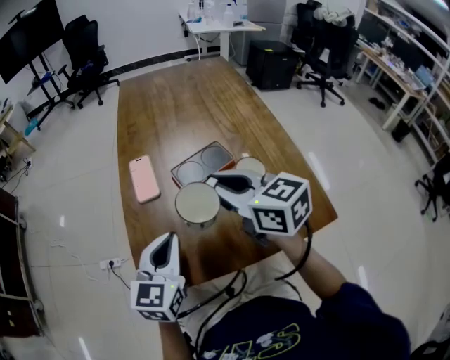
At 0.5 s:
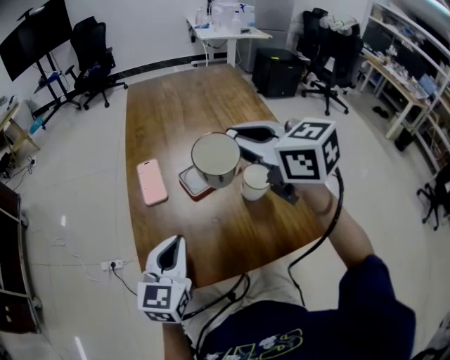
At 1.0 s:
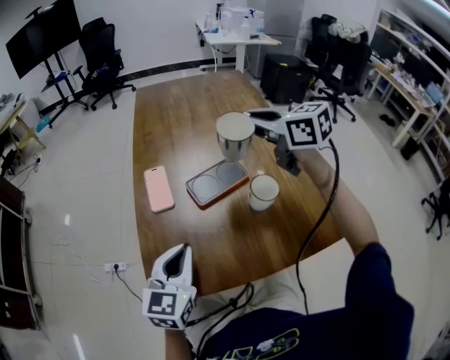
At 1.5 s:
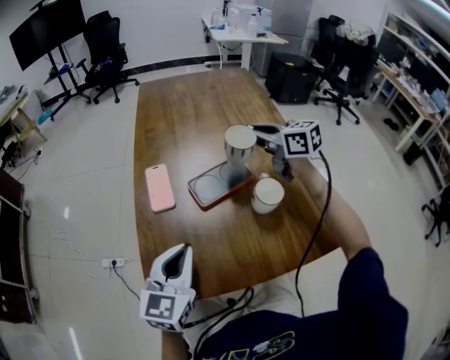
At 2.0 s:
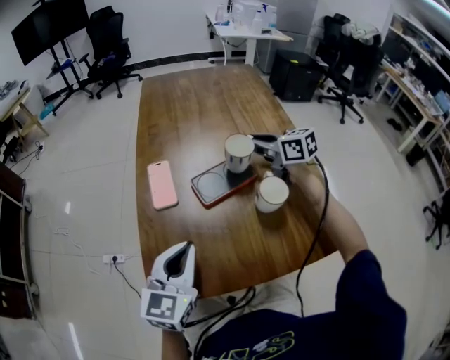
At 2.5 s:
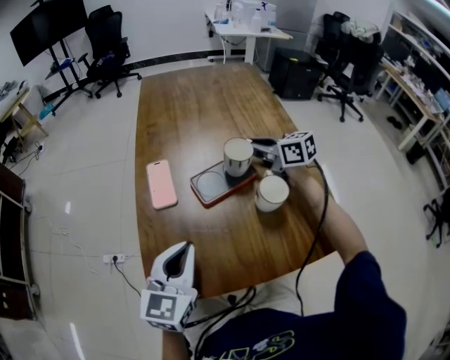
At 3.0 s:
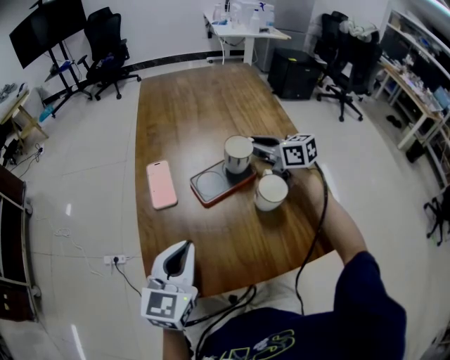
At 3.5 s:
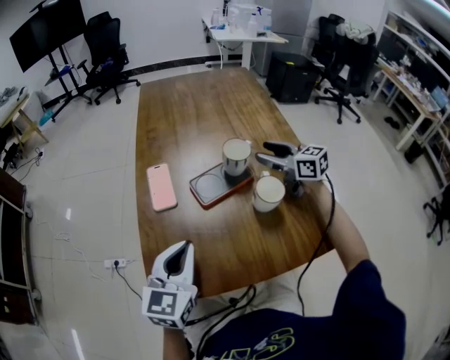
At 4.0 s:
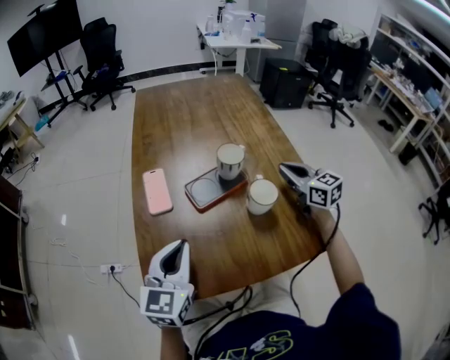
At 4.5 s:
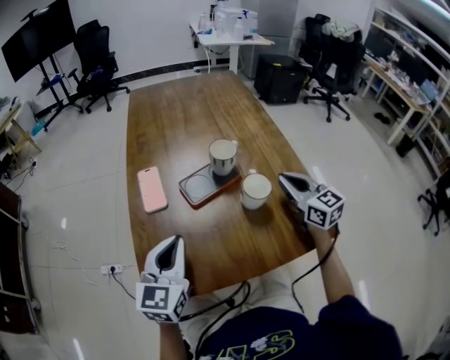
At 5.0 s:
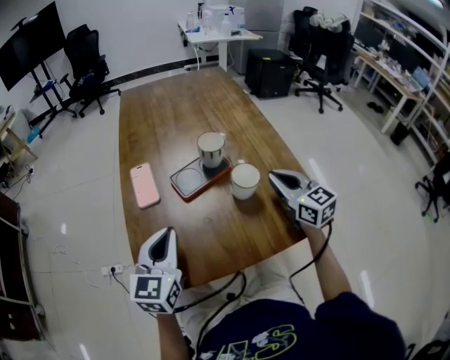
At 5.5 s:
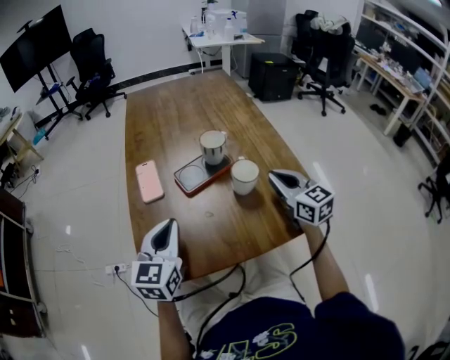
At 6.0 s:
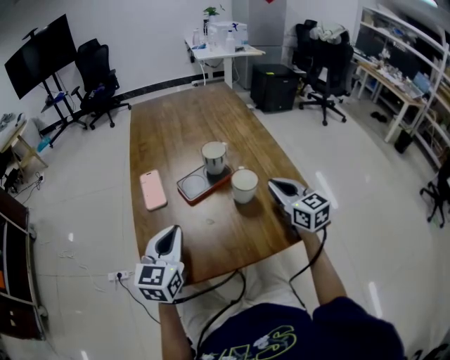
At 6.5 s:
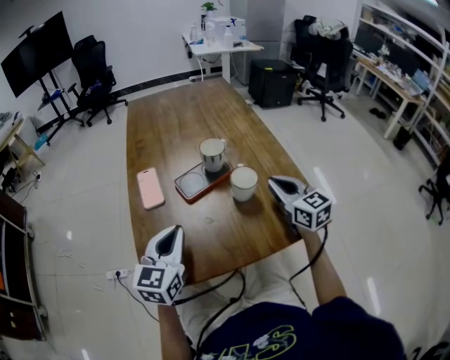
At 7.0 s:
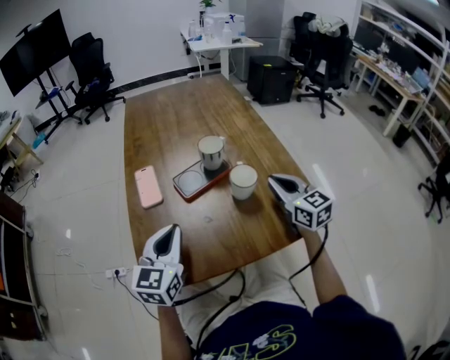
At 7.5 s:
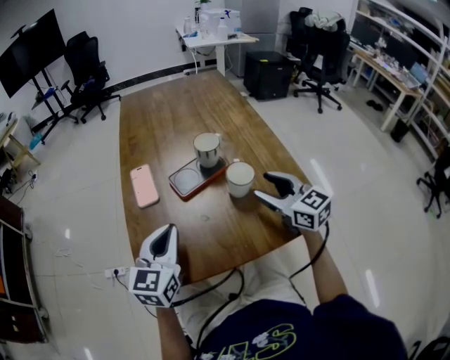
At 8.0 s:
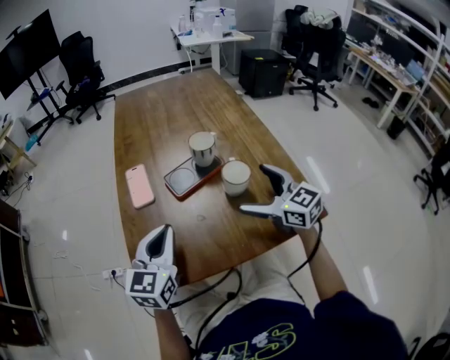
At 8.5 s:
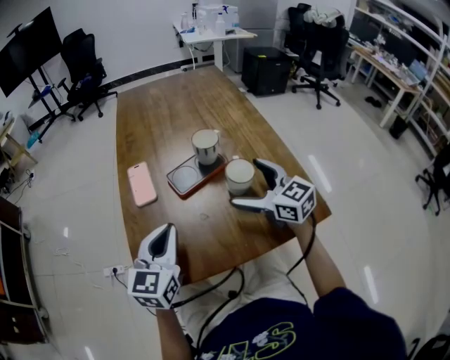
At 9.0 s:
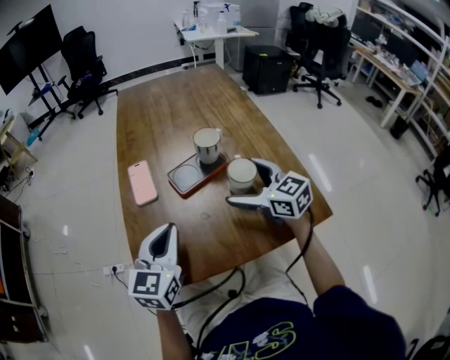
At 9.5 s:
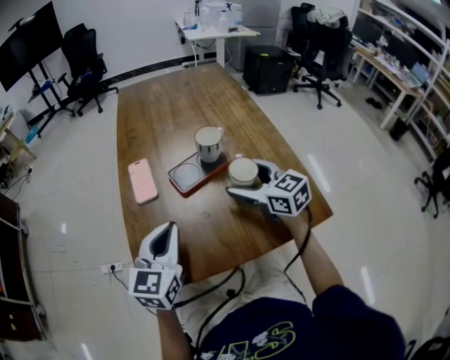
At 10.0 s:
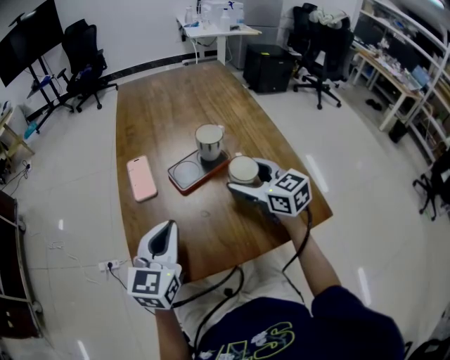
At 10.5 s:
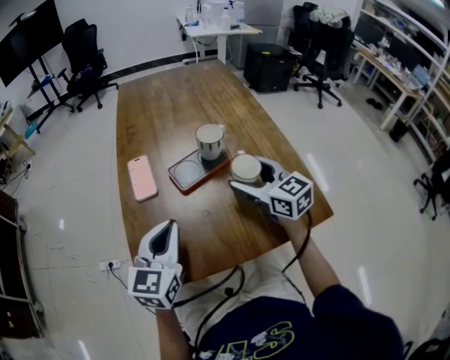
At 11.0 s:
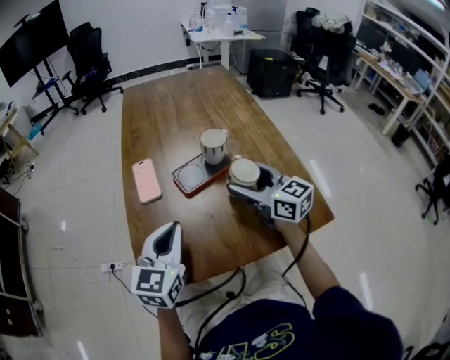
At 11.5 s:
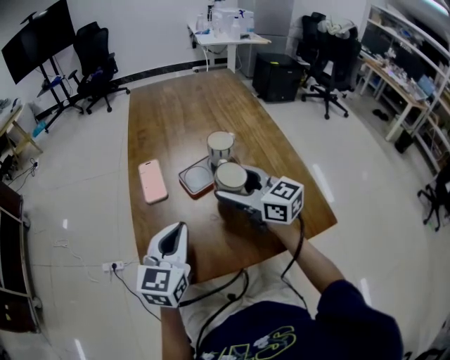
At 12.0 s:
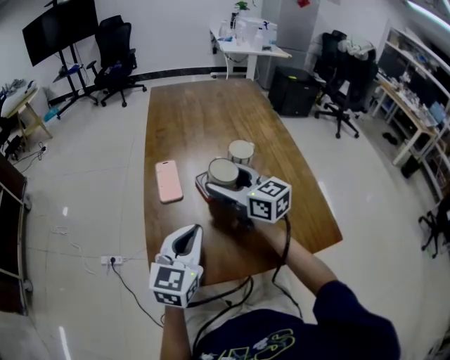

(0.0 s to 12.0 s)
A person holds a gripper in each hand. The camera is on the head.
0.0 s - 2.0 s: The right gripper moves forward and to the right, approximately 20 cm.
2.0 s - 4.0 s: The right gripper heads to the right and backward, covering some 15 cm, rotates roughly 20 degrees, and opens and closes again.
4.0 s - 6.0 s: The right gripper travels backward by approximately 10 cm.
6.0 s - 8.0 s: The right gripper goes some 5 cm to the left, and opens up.
8.0 s - 10.0 s: The right gripper travels forward by some 5 cm.
10.0 s - 12.0 s: The right gripper goes about 10 cm to the left.

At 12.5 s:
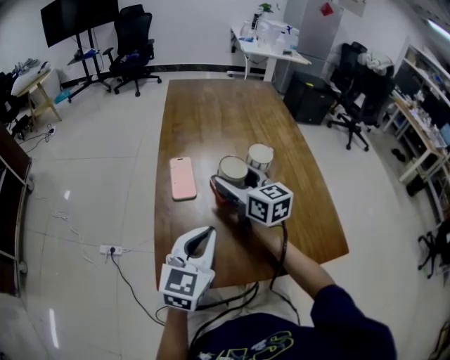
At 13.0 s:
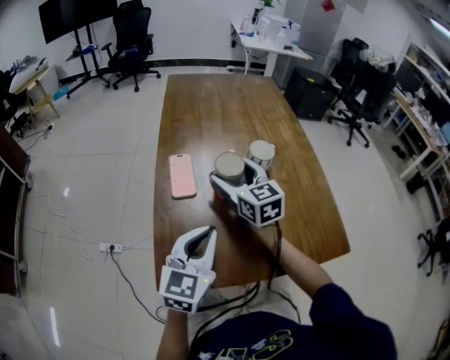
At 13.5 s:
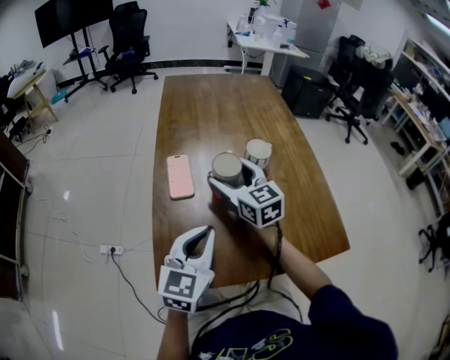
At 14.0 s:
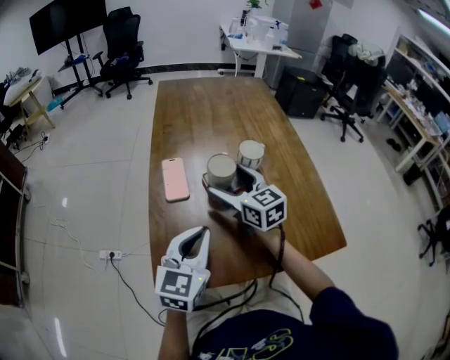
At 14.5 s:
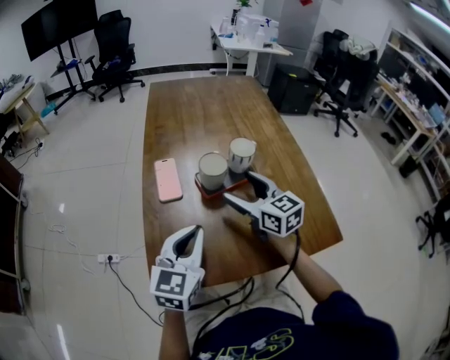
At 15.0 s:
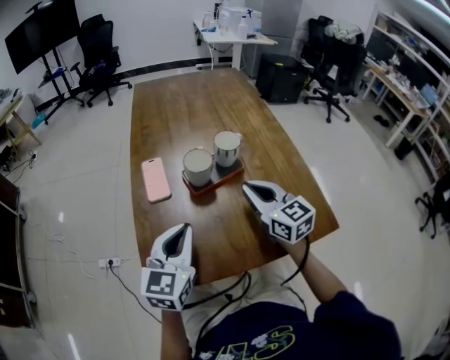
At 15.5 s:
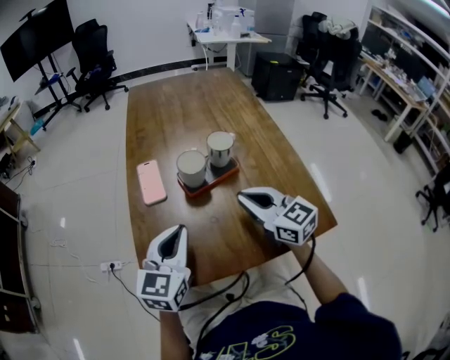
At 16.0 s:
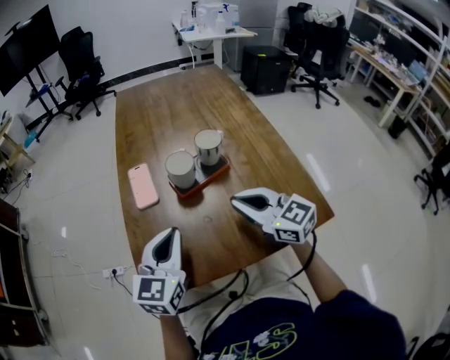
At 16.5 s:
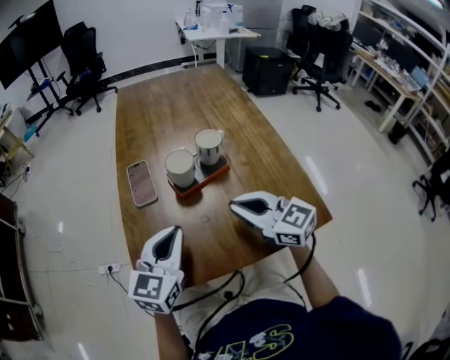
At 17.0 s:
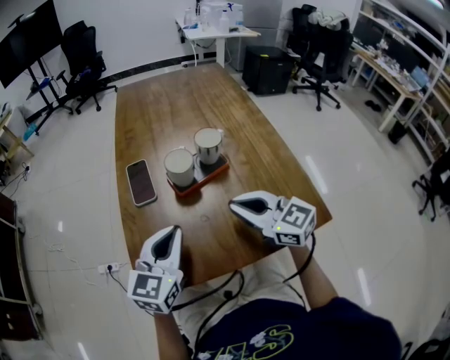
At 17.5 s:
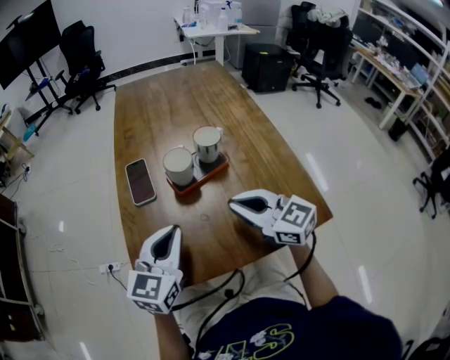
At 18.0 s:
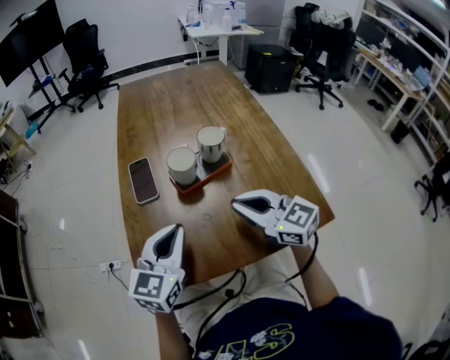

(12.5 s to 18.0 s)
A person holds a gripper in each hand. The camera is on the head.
12.5 s - 14.5 s: The right gripper shifts roughly 5 cm to the right.
14.5 s - 16.0 s: The right gripper is displaced backward by some 10 cm, and closes.
16.0 s - 18.0 s: The two grippers keep their place.

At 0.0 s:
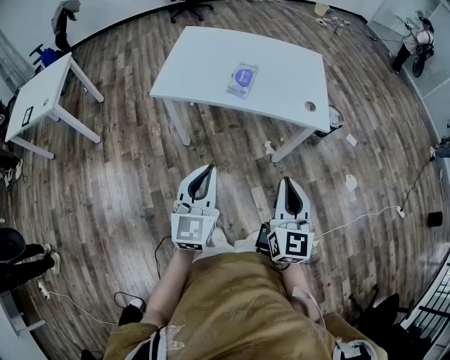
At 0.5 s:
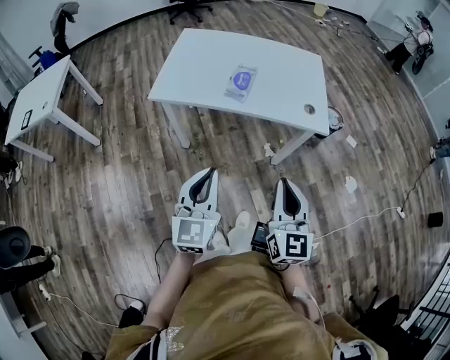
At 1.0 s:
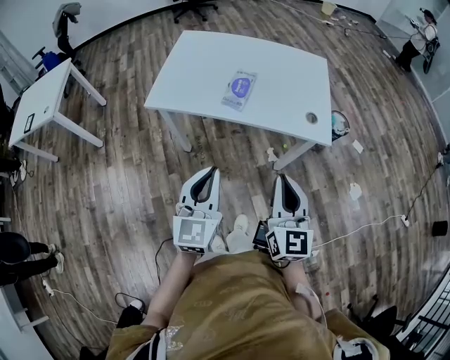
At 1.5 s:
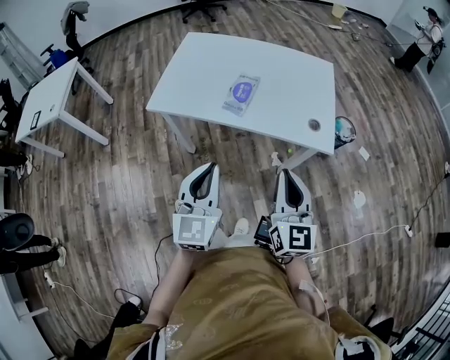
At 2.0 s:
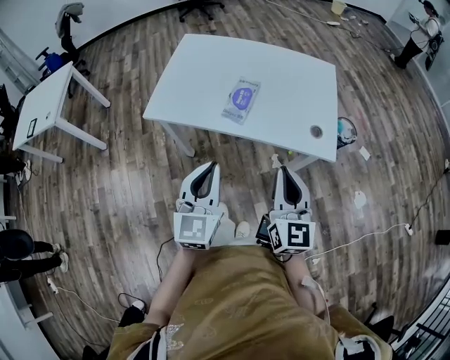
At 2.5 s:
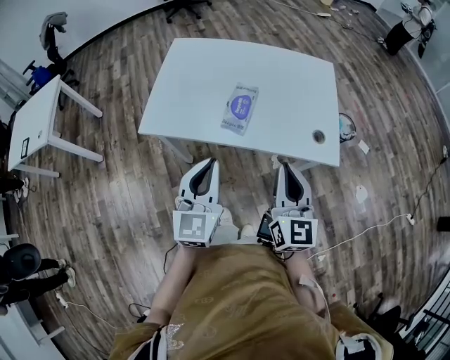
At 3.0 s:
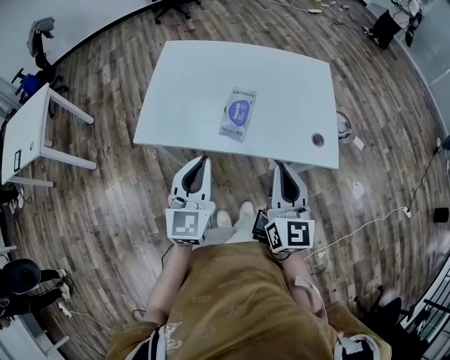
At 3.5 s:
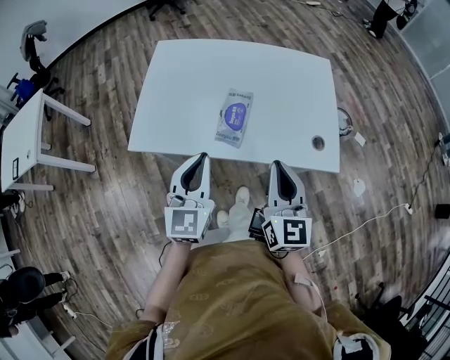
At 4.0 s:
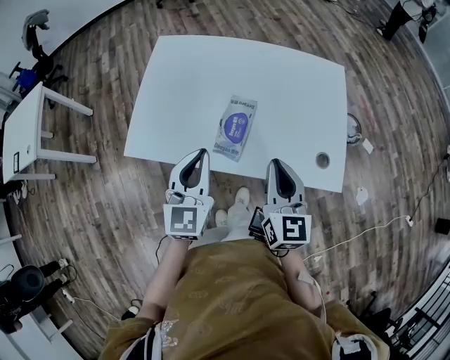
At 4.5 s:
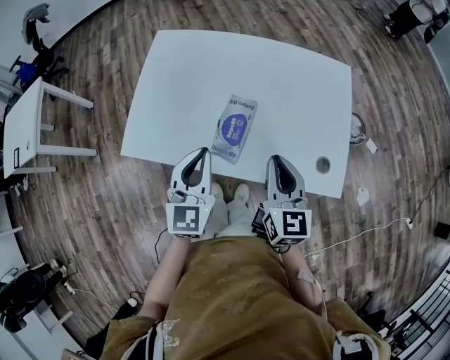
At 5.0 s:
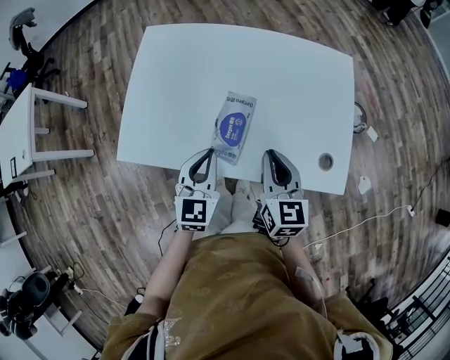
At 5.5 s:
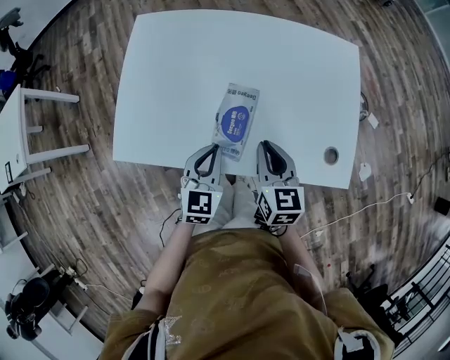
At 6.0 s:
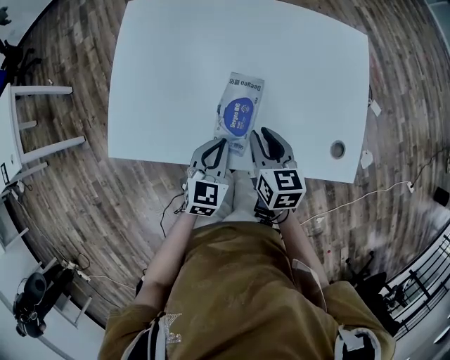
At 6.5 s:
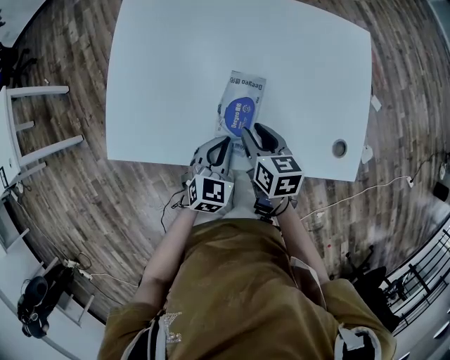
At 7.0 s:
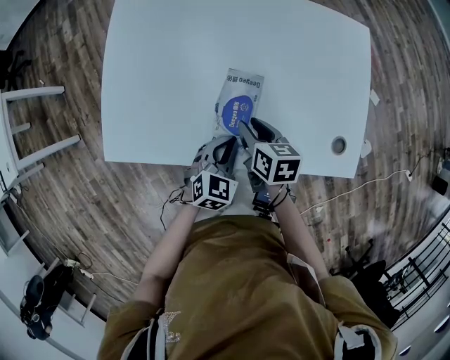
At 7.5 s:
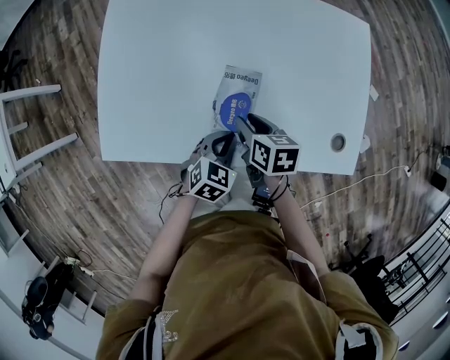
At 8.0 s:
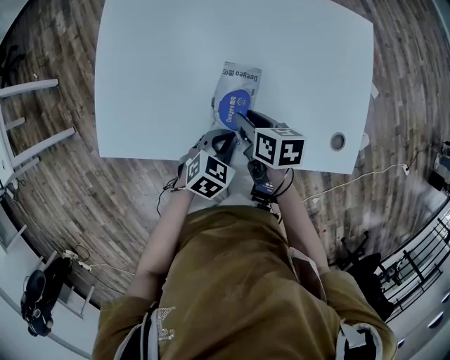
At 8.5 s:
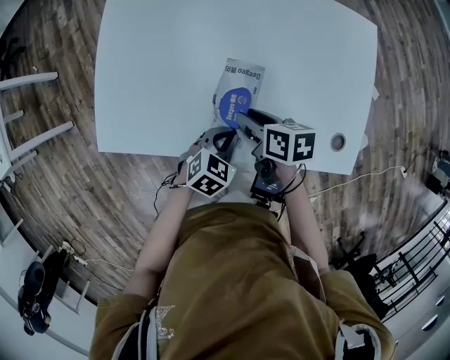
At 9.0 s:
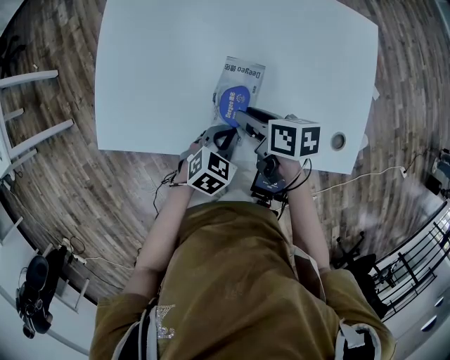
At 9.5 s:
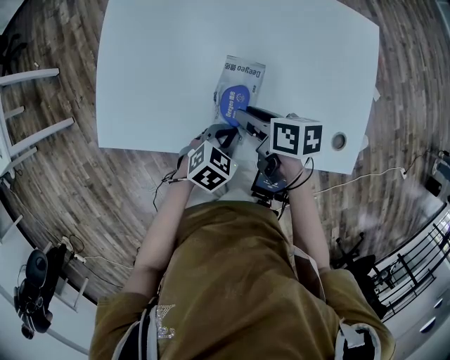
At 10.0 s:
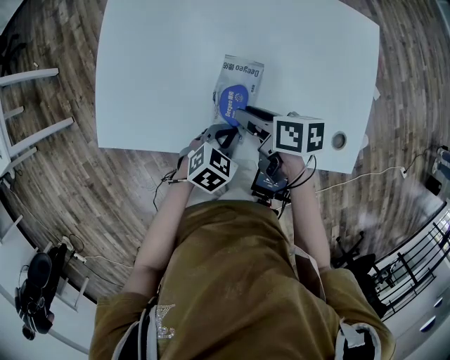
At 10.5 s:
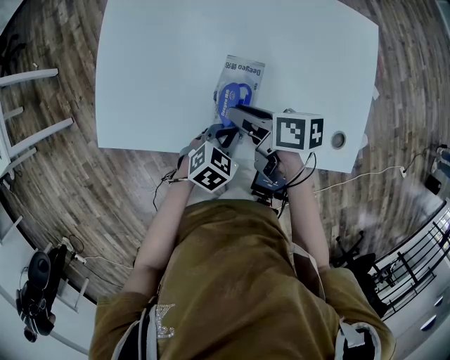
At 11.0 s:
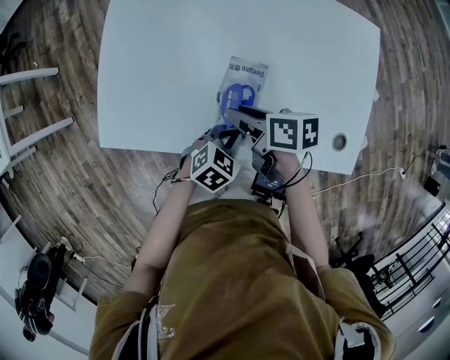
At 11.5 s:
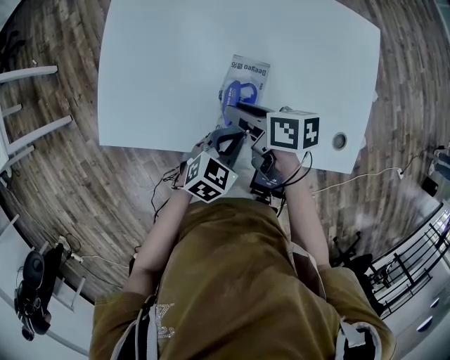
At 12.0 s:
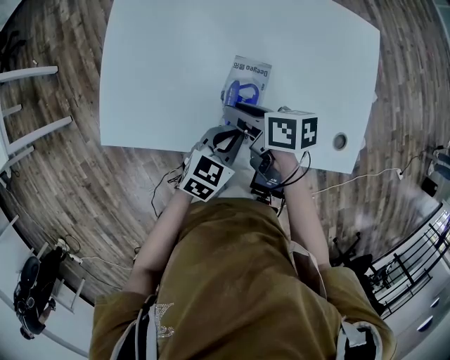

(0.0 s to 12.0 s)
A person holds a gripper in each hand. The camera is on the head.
0.0 s - 2.0 s: Both grippers move forward, some 15 cm.
2.0 s - 4.0 s: The two grippers go roughly 25 cm forward.
4.0 s - 6.0 s: The left gripper is displaced downward by approximately 20 cm, and changes its angle by roughly 30 degrees, while the right gripper moves downward and forward, some 20 cm, and changes its angle by roughly 30 degrees.
6.0 s - 8.0 s: The grippers both shift downward by about 5 cm. The left gripper changes its angle by roughly 30 degrees, while the right gripper changes its angle by about 30 degrees.
8.0 s - 10.0 s: The grippers make only small movements.
10.0 s - 12.0 s: The left gripper shifts approximately 5 cm upward, and rotates approximately 20 degrees; the right gripper ends up approximately 5 cm from where it was.
